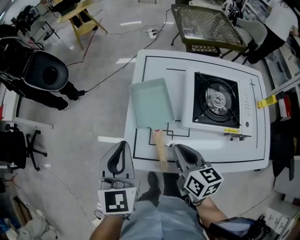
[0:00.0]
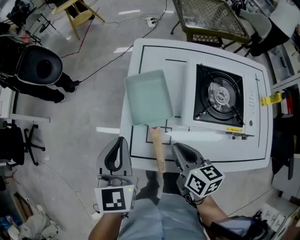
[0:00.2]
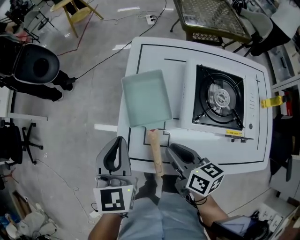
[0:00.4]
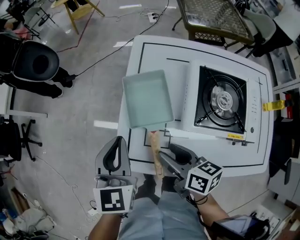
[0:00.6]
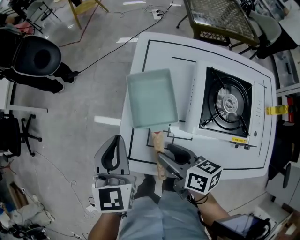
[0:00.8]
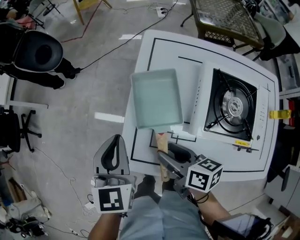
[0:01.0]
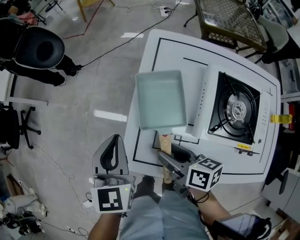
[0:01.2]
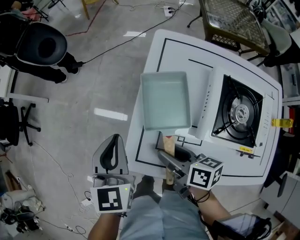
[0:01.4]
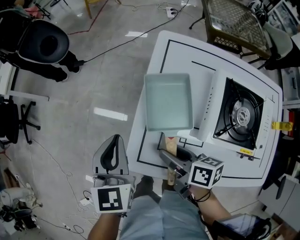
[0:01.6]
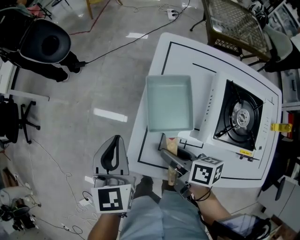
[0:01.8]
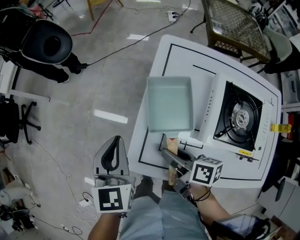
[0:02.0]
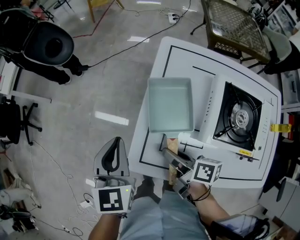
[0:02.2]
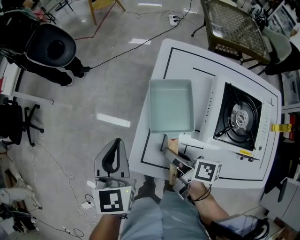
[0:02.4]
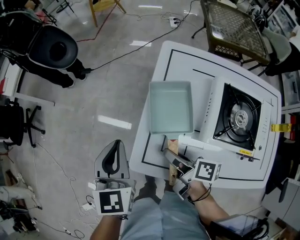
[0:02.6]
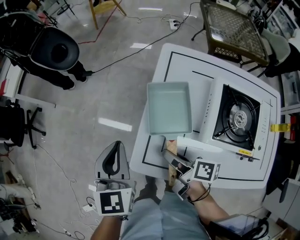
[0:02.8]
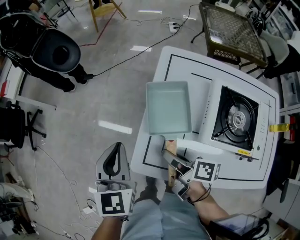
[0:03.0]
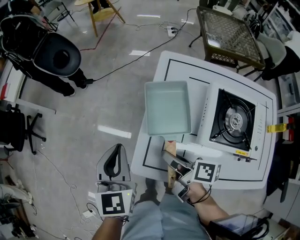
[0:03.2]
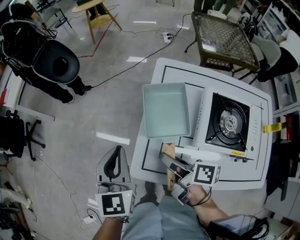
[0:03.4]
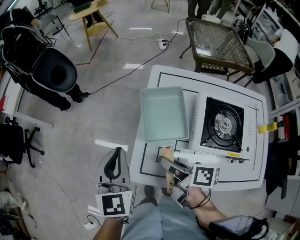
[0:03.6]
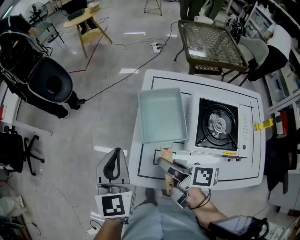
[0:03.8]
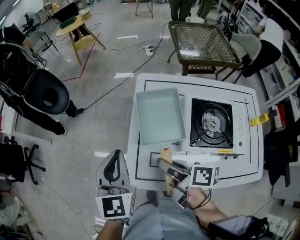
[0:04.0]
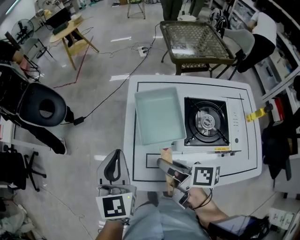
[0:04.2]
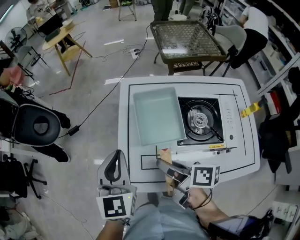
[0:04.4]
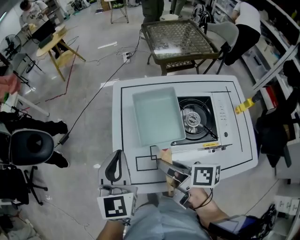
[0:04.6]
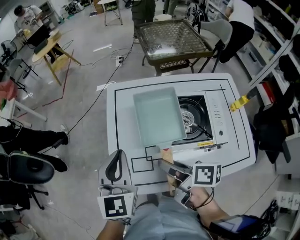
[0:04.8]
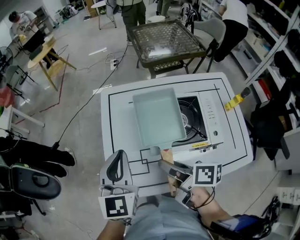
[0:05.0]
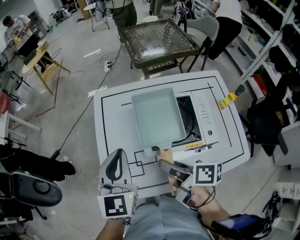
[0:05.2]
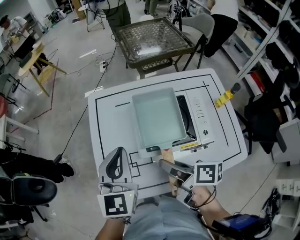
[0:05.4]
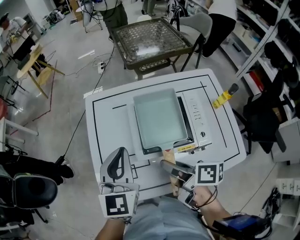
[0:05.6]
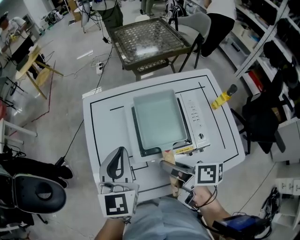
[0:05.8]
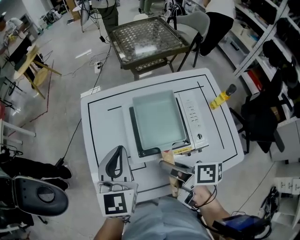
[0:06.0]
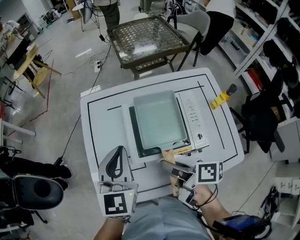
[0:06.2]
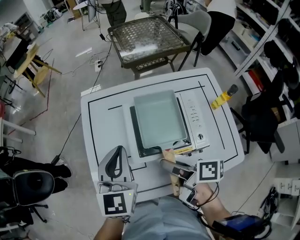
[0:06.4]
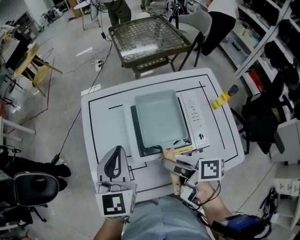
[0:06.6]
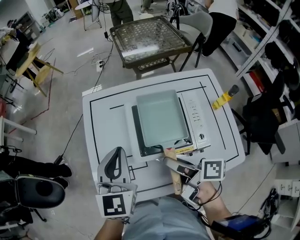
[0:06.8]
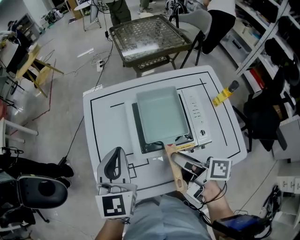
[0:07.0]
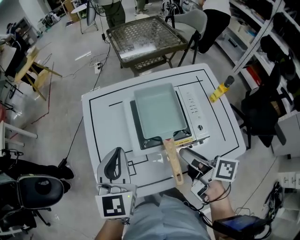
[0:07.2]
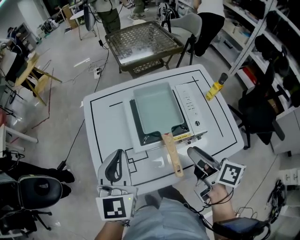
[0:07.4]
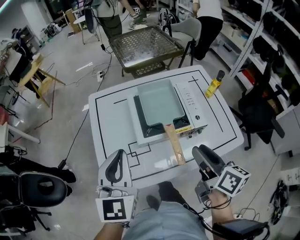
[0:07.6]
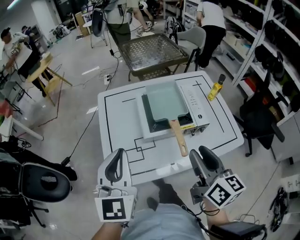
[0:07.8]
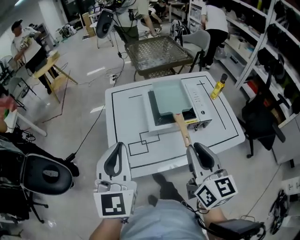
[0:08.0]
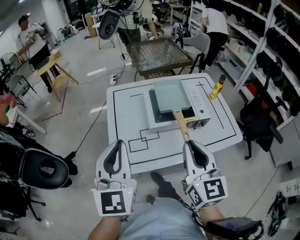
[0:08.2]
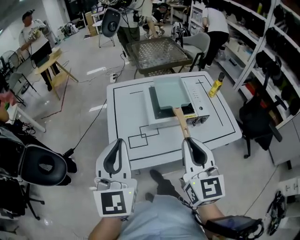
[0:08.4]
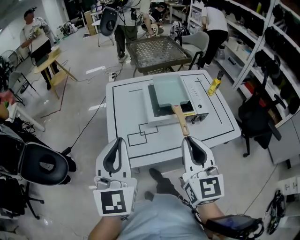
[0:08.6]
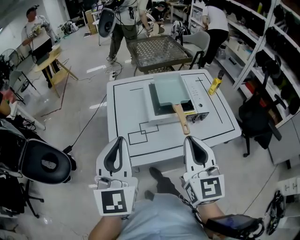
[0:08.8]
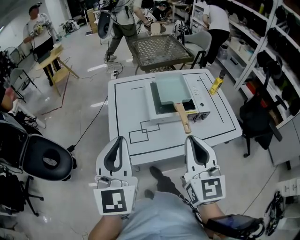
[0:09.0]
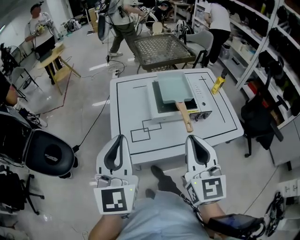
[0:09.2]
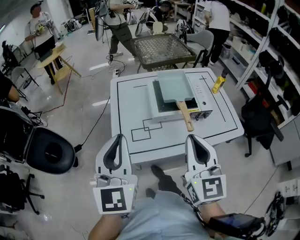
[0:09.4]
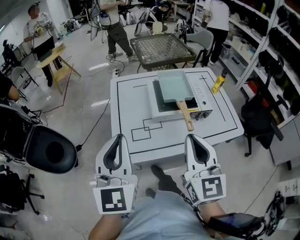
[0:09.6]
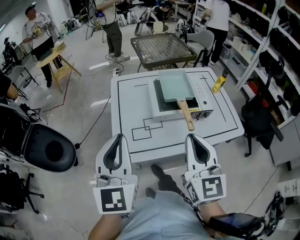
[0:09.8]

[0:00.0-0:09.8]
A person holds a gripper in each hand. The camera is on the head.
0:00.0 to 0:01.4: The left gripper heads forward and downward, covering about 10 cm, while the right gripper travels forward, to the left and downward by about 10 cm, swivels some 30 degrees, and opens.
0:02.8 to 0:04.2: The left gripper is displaced to the right and upward by roughly 10 cm. Meanwhile the right gripper moves upward and to the right, approximately 15 cm.
0:04.2 to 0:05.6: Both grippers travel together to the right, some 20 cm.
0:05.6 to 0:07.0: The right gripper travels to the right by roughly 5 cm.
0:07.0 to 0:08.4: The left gripper goes some 30 cm backward, upward and to the left. Meanwhile the right gripper goes about 25 cm backward and upward, twists approximately 70 degrees counterclockwise, seen from behind, and closes up.
0:08.4 to 0:09.8: The grippers move only a little.

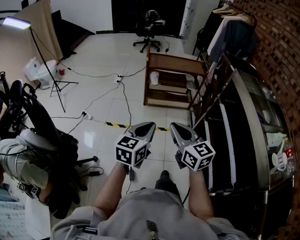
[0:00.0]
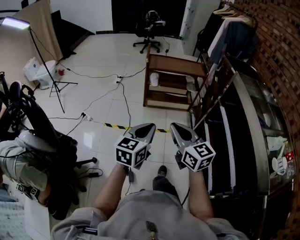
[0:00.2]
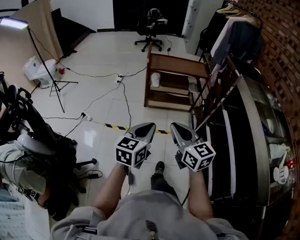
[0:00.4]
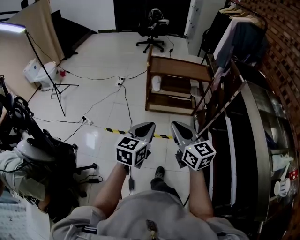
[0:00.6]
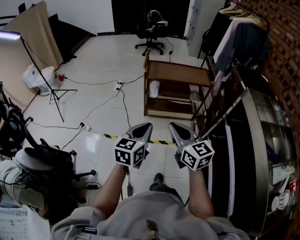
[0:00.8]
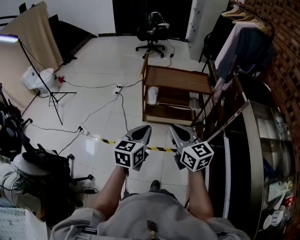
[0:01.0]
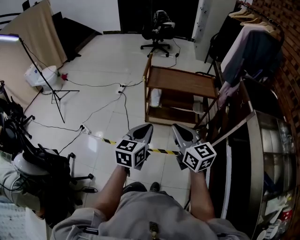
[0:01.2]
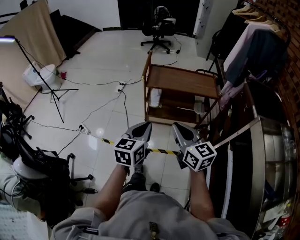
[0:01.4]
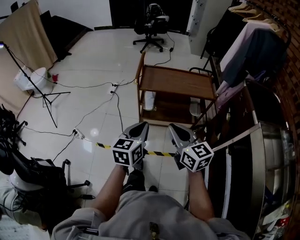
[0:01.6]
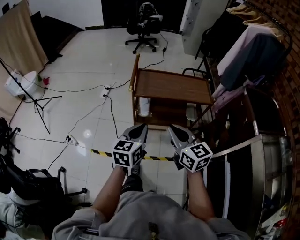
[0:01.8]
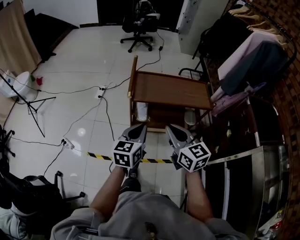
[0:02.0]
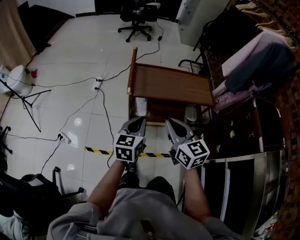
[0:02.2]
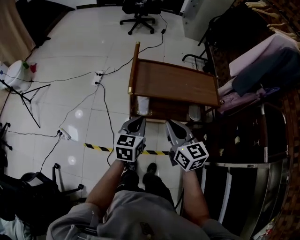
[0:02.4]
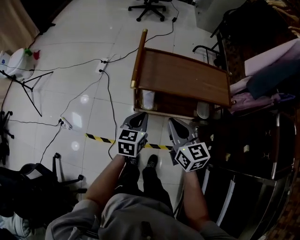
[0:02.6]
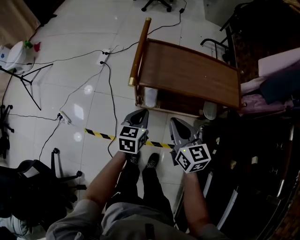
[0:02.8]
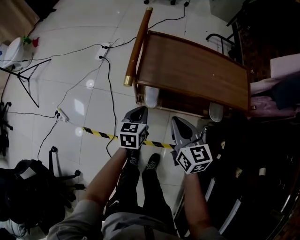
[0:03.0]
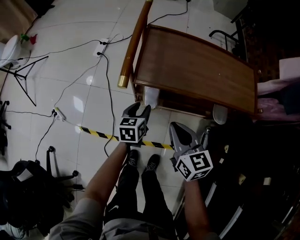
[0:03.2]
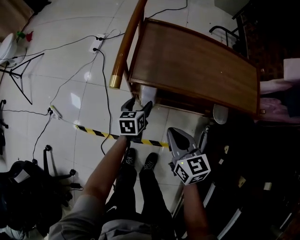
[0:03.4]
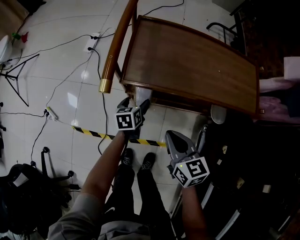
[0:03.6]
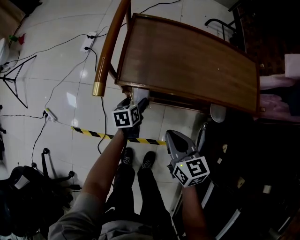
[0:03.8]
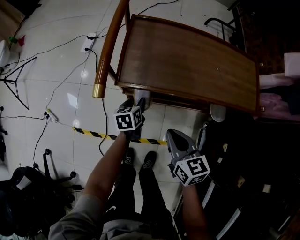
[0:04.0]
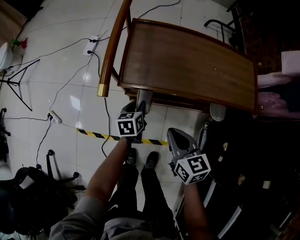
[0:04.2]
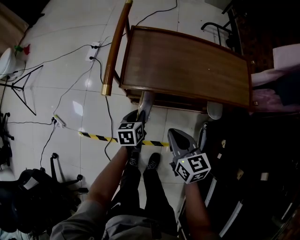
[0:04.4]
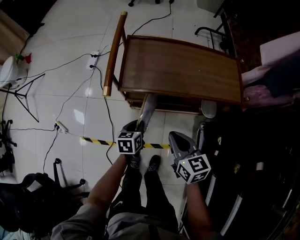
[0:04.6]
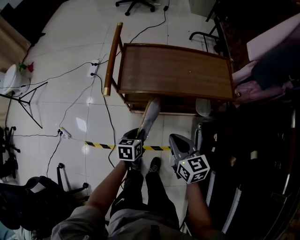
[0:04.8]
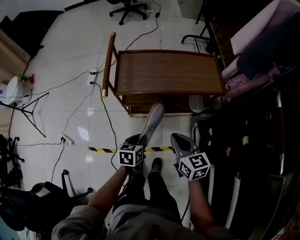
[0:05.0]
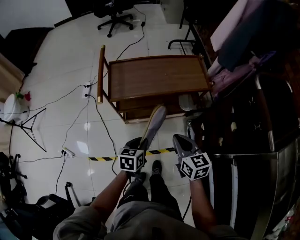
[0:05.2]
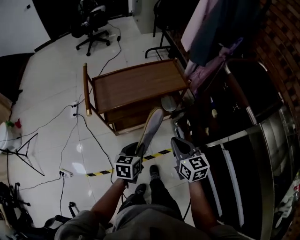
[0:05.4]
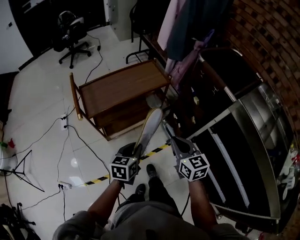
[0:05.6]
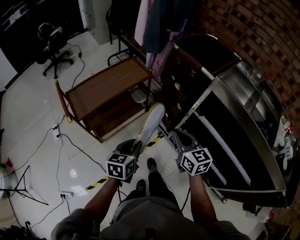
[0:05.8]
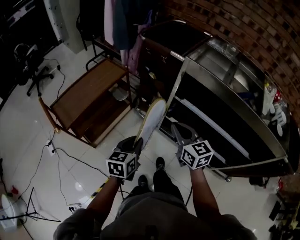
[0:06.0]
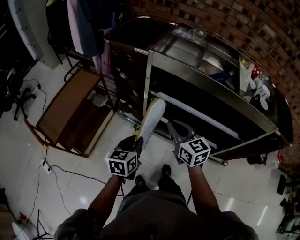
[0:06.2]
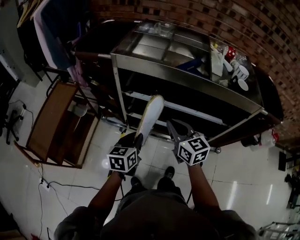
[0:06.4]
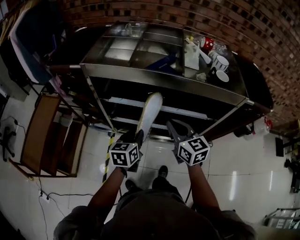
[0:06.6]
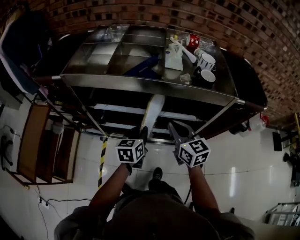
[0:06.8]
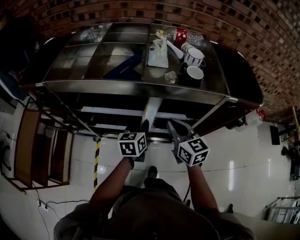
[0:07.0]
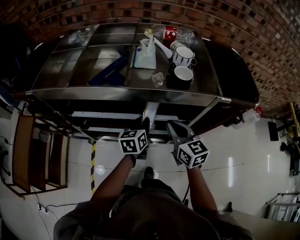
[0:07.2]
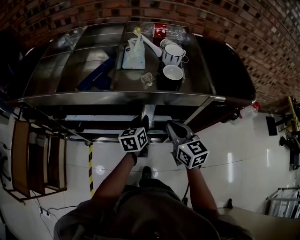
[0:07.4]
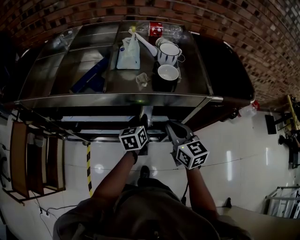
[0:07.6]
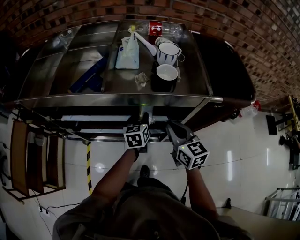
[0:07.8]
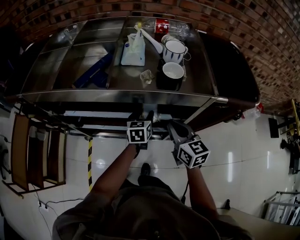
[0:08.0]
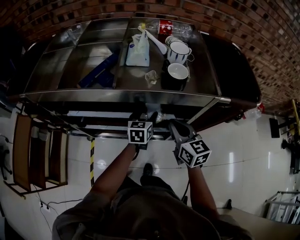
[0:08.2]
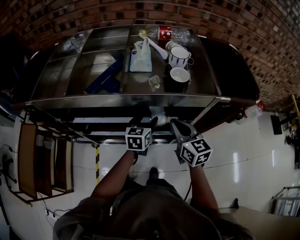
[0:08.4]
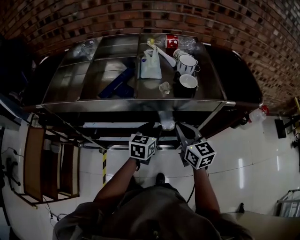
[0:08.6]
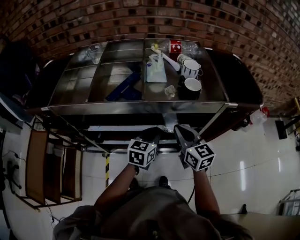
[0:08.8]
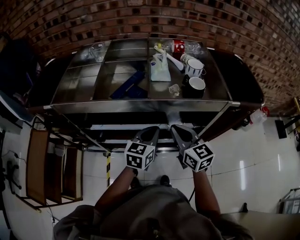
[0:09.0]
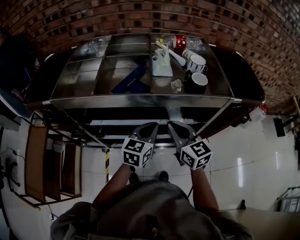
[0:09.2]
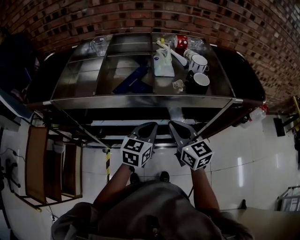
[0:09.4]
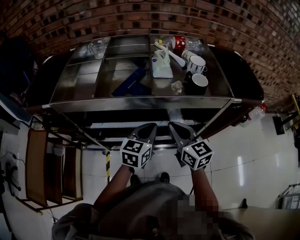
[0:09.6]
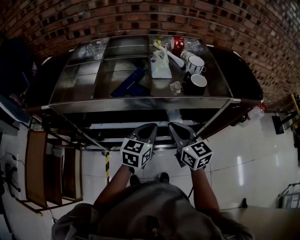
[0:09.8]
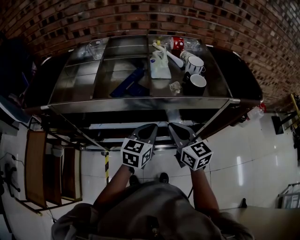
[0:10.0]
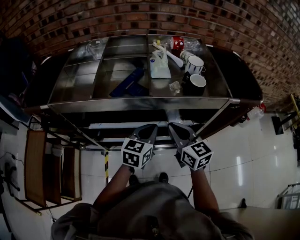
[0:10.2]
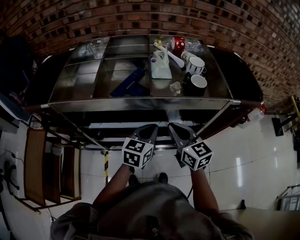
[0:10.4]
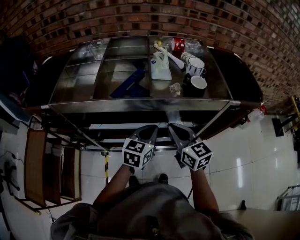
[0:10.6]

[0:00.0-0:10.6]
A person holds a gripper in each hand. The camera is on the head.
0:00.0 to 0:01.6: The pair of grippers is taken forward, approximately 40 cm.
0:01.6 to 0:03.0: The right gripper is displaced forward and downward by about 40 cm; the left gripper shifts about 50 cm downward and forward, and swivels roughly 20 degrees.
0:03.0 to 0:04.6: The left gripper travels downward and back again, approximately 20 cm each way, and opens, then closes again. Meanwhile the right gripper goes approximately 5 cm to the right, and moves roughly 10 cm downward and comes back.
0:04.6 to 0:06.0: The right gripper ends up some 50 cm from where it was, and changes its angle by roughly 60 degrees, while the left gripper moves roughly 50 cm, and rotates roughly 60 degrees.
0:06.0 to 0:07.6: The pair of grippers is taken about 60 cm. The right gripper changes its angle by some 40 degrees; the left gripper swivels approximately 30 degrees.
0:07.6 to 0:09.0: The left gripper shifts about 15 cm upward, to the left and backward, swivels approximately 20 degrees, and opens and closes again, while the right gripper goes approximately 15 cm to the left and upward.
0:09.0 to 0:10.6: The grippers stay close to where they were, moving slightly.

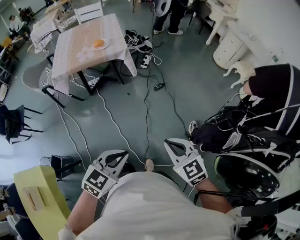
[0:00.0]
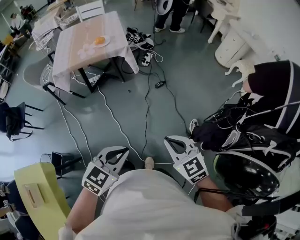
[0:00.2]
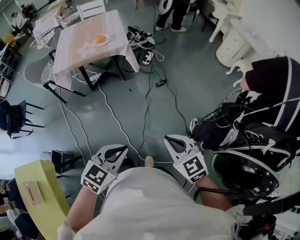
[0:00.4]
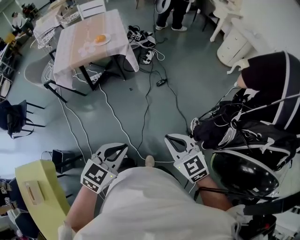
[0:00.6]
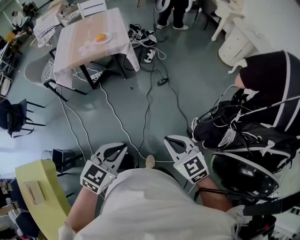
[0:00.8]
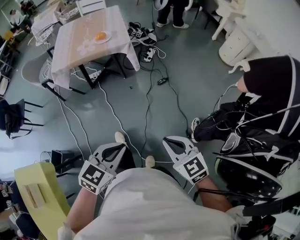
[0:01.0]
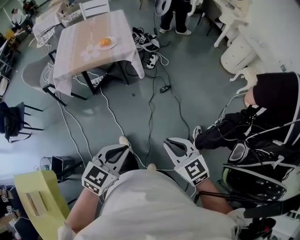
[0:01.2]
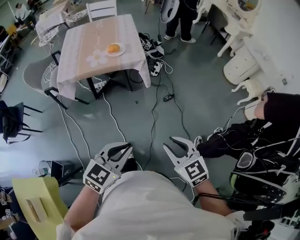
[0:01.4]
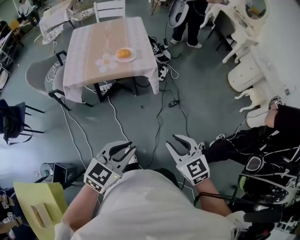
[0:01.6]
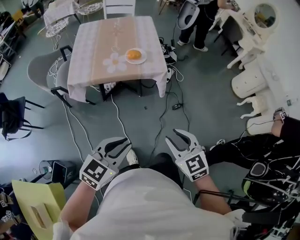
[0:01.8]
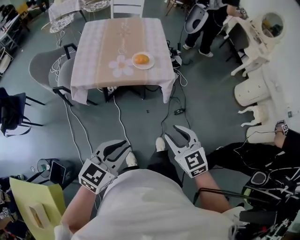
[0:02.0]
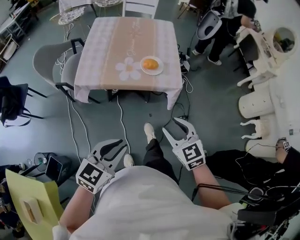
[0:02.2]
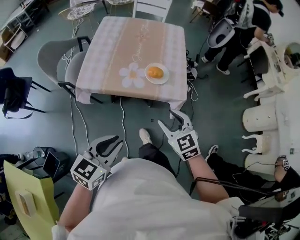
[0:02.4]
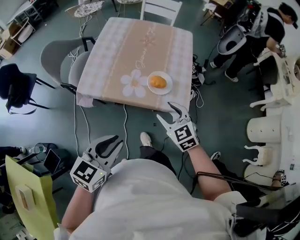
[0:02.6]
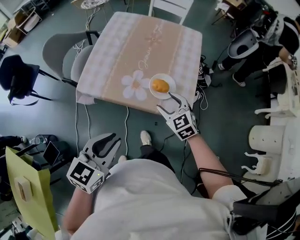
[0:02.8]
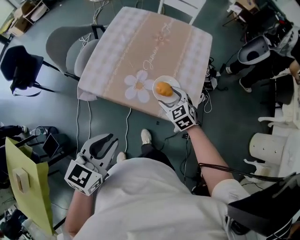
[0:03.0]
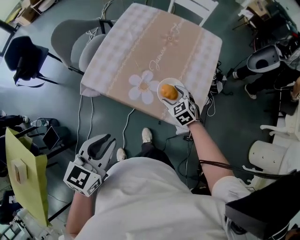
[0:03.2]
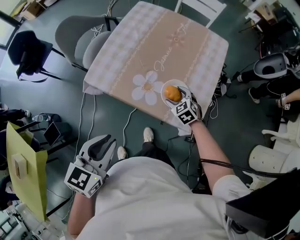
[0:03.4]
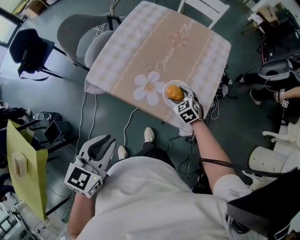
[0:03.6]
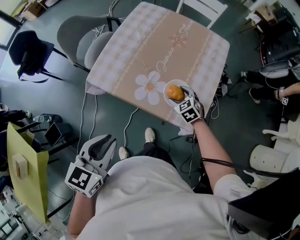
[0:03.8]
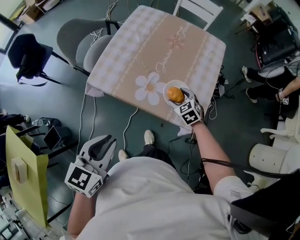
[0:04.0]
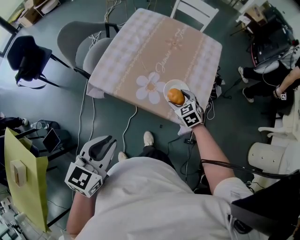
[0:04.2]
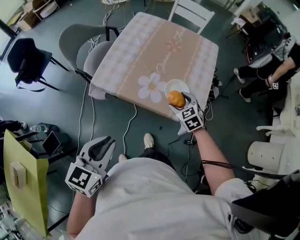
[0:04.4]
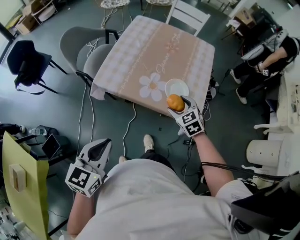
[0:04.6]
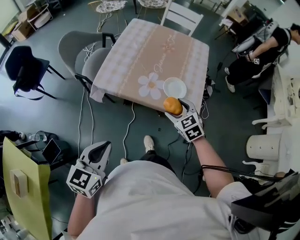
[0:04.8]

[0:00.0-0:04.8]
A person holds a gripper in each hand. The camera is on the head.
0:00.0 to 0:01.6: The grippers both shift forward and to the left by approximately 25 cm.
0:01.6 to 0:03.2: The left gripper shifts by some 40 cm, and swivels about 50 degrees, while the right gripper shifts by about 60 cm, swivels approximately 40 degrees, and opens up.
0:03.2 to 0:04.8: The left gripper goes some 15 cm to the left and backward. The right gripper is displaced backward, upward and to the left by about 20 cm.
